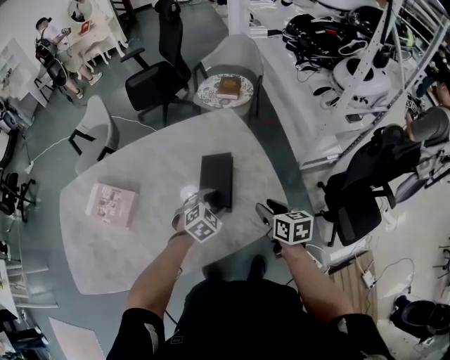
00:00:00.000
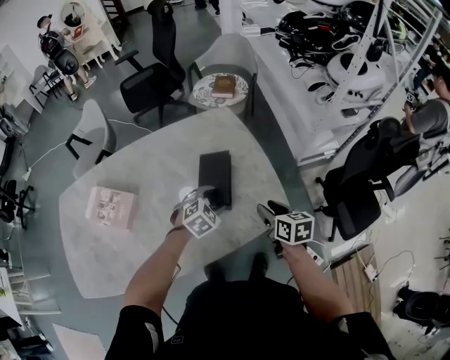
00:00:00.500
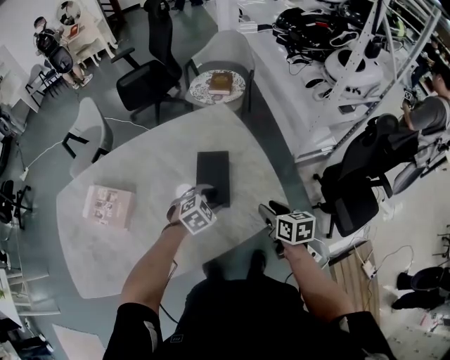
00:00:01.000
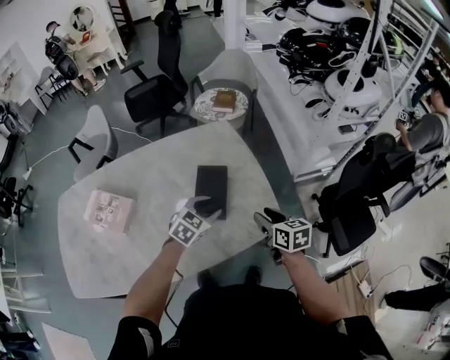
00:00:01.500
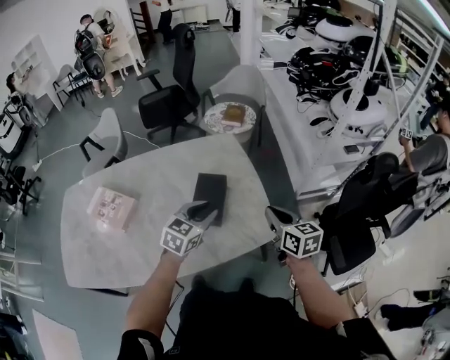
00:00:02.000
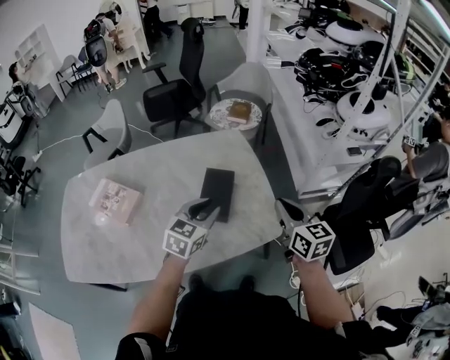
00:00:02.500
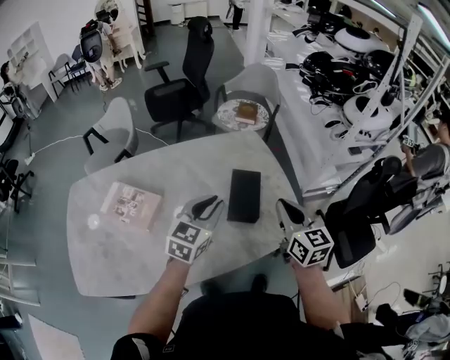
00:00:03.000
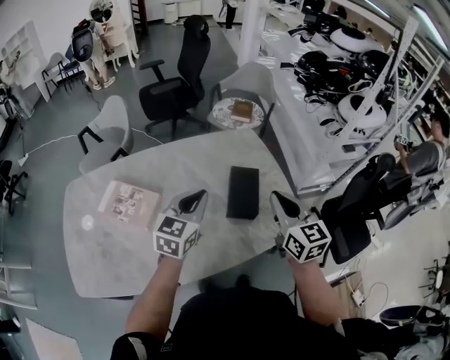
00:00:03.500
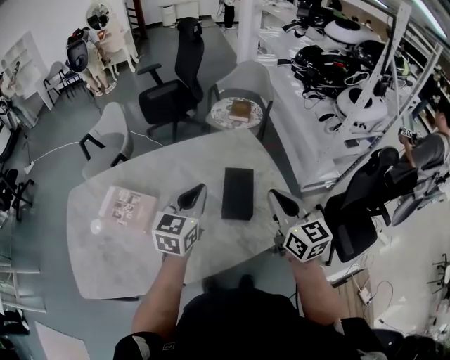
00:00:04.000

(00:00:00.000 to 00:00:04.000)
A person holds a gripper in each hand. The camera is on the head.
00:00:00.000 - 00:00:02.000: The left gripper heads upward, covering about 15 cm, changes its angle by about 40 degrees, and closes up. The right gripper travels upward and to the right by approximately 10 cm, and closes its fingers.
00:00:02.000 - 00:00:04.000: Both grippers travel together to the left and upward, approximately 20 cm. The left gripper closes its fingers.

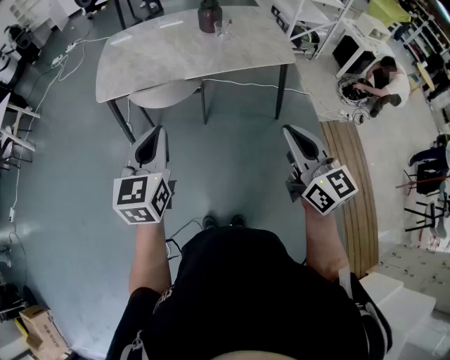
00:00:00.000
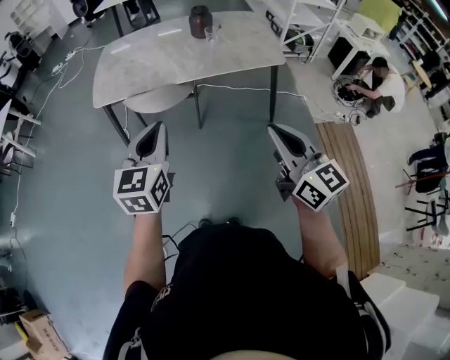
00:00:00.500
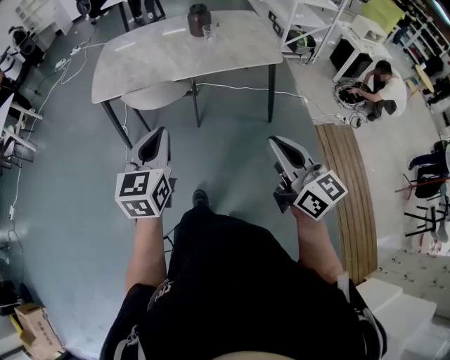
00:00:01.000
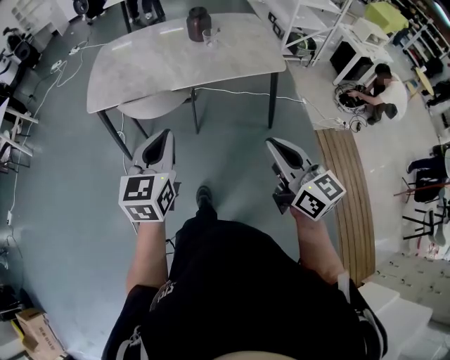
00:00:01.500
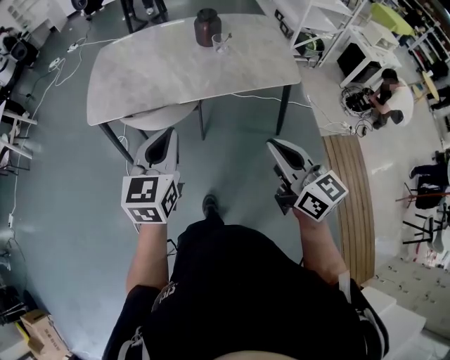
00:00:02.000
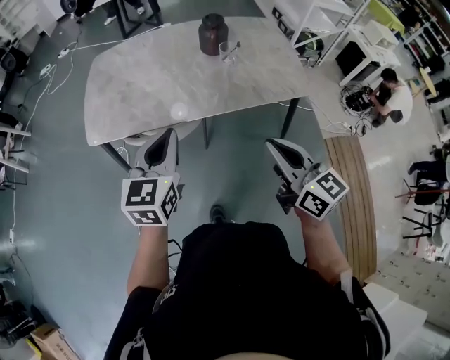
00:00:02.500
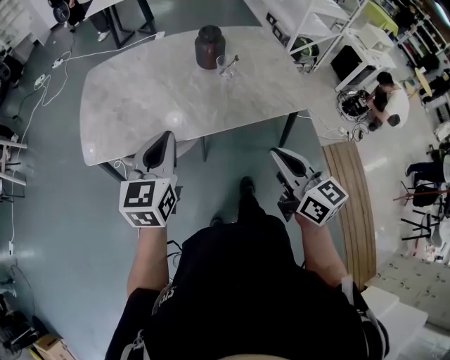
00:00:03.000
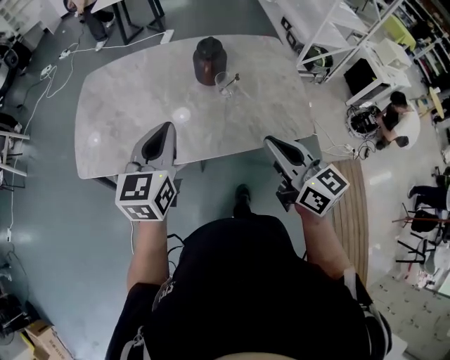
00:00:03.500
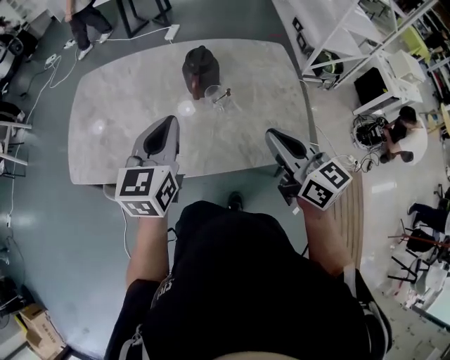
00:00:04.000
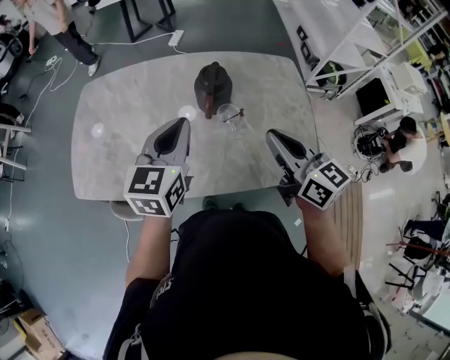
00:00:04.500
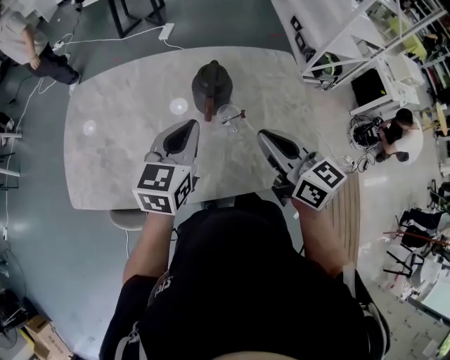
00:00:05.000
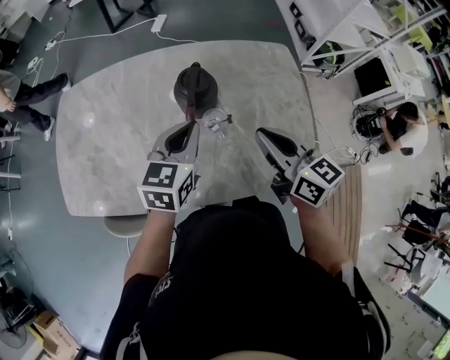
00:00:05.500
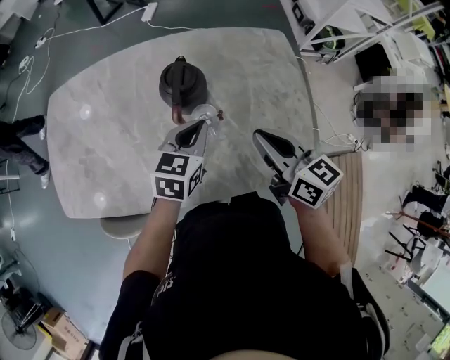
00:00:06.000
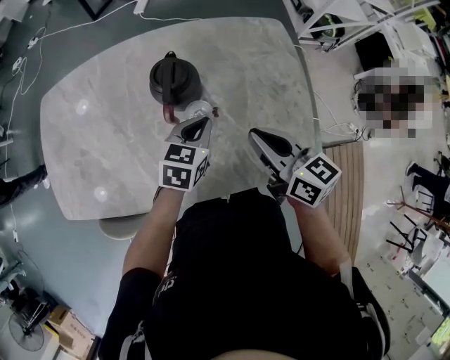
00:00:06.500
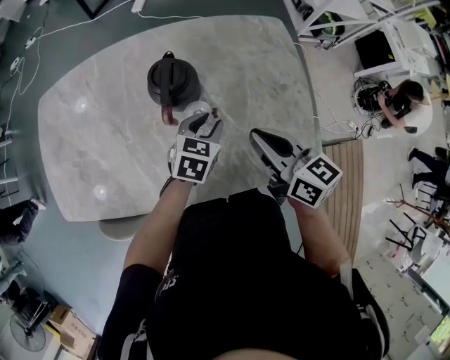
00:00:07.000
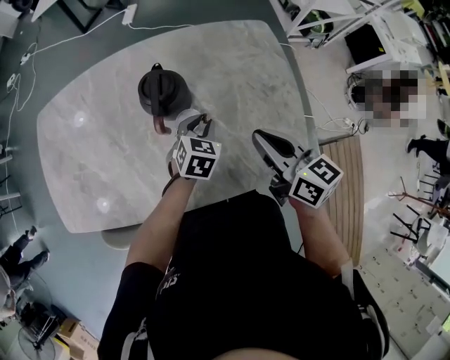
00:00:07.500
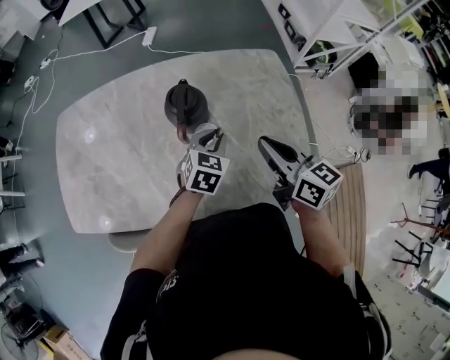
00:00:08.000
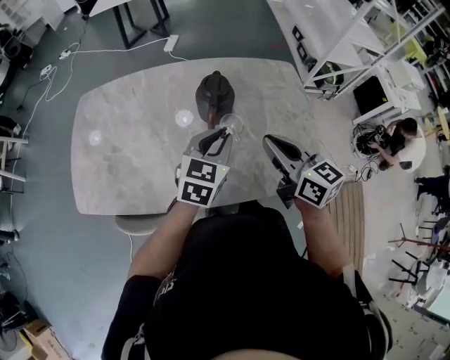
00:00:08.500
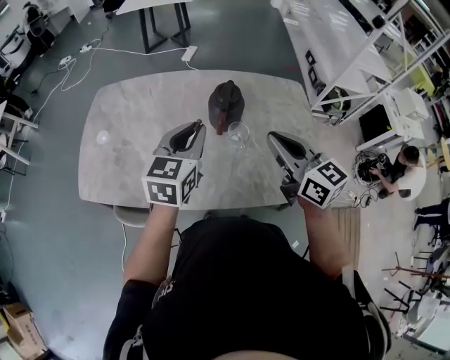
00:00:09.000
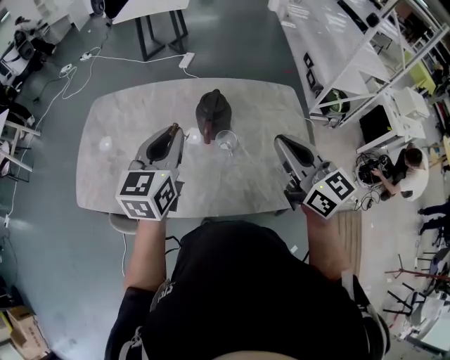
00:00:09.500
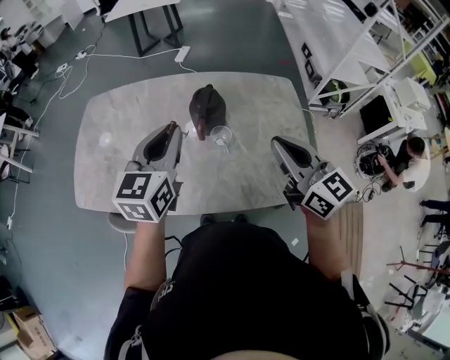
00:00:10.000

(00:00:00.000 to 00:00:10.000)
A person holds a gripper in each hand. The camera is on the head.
00:00:00.000 - 00:00:02.000: The left gripper is displaced forward and to the right by roughly 15 cm. Meanwhile the right gripper shifts roughly 15 cm forward.
00:00:02.000 - 00:00:04.000: The grippers both shift forward by roughly 40 cm.
00:00:04.000 - 00:00:06.000: The right gripper is displaced forward and downward by about 15 cm. The left gripper is displaced downward, forward and to the right by about 25 cm, and rotates some 30 degrees.
00:00:08.000 - 00:00:10.000: The left gripper heads upward and to the left, covering some 30 cm, and rotates about 30 degrees, while the right gripper heads upward, covering about 10 cm, and rotates some 20 degrees.

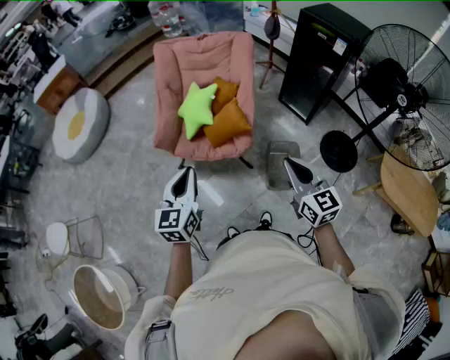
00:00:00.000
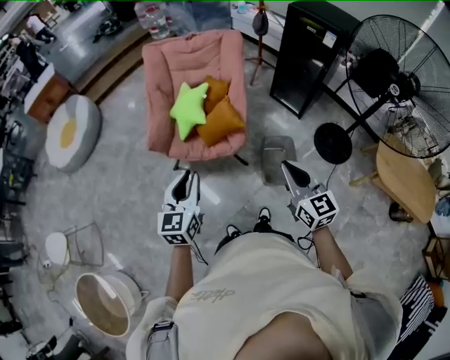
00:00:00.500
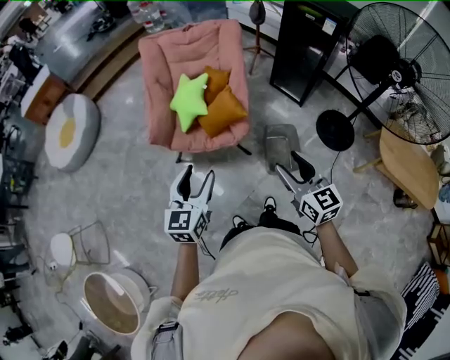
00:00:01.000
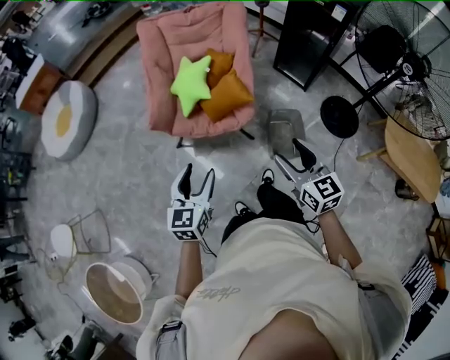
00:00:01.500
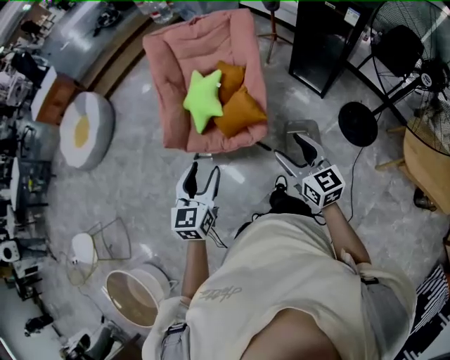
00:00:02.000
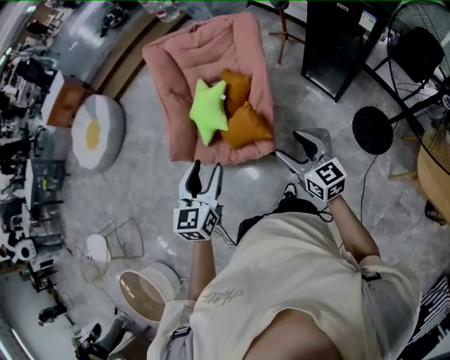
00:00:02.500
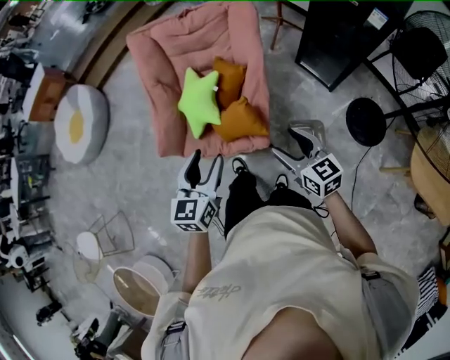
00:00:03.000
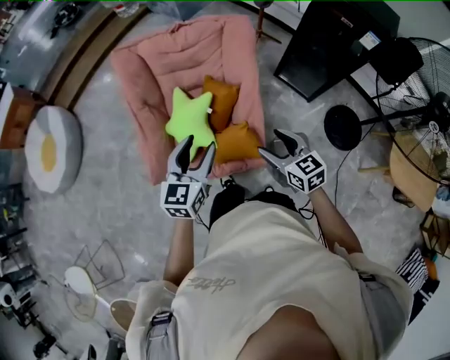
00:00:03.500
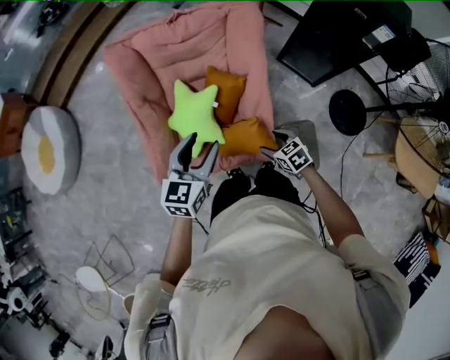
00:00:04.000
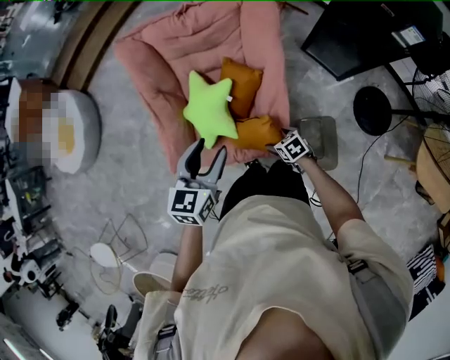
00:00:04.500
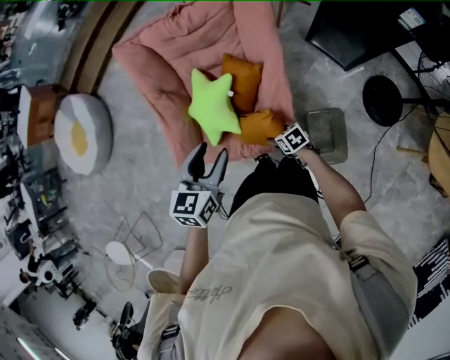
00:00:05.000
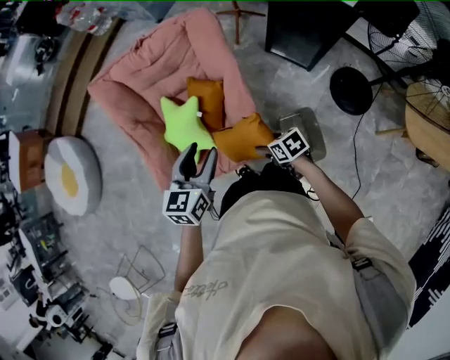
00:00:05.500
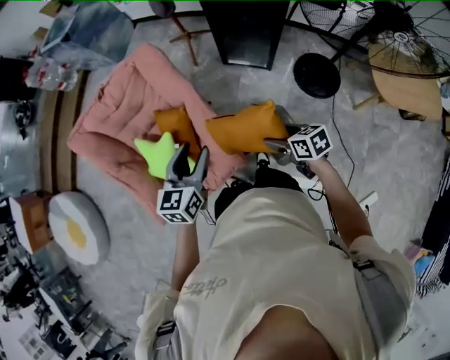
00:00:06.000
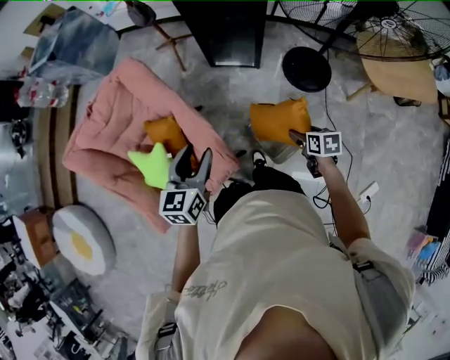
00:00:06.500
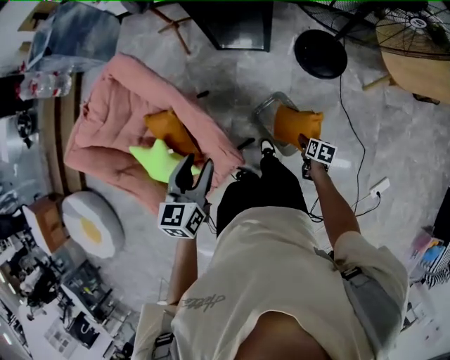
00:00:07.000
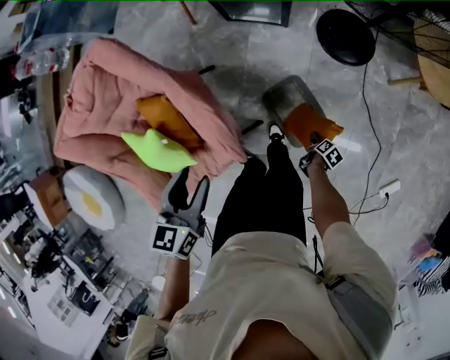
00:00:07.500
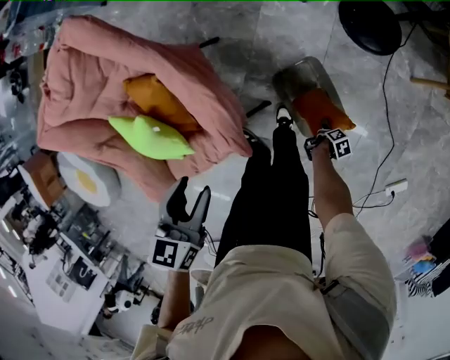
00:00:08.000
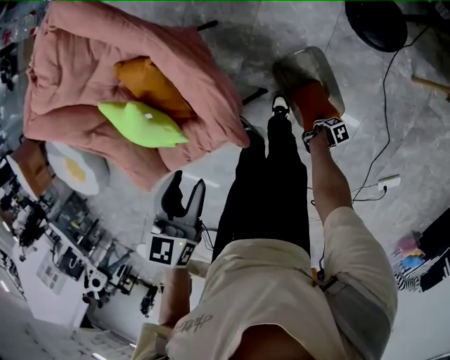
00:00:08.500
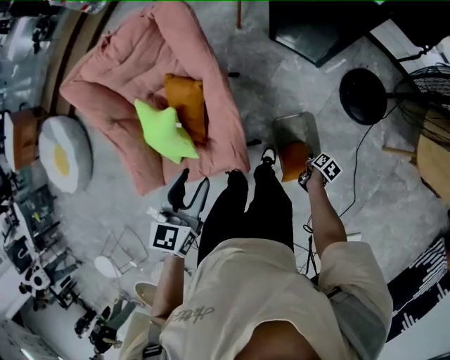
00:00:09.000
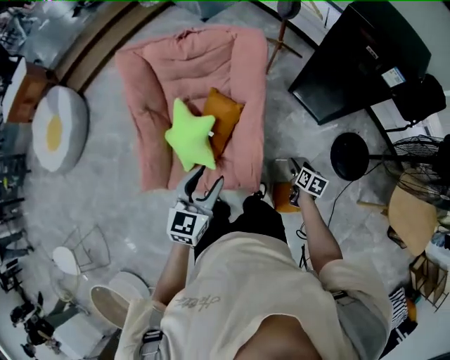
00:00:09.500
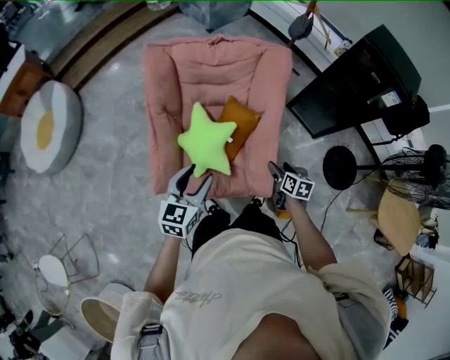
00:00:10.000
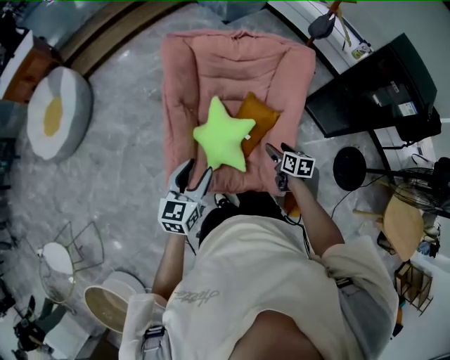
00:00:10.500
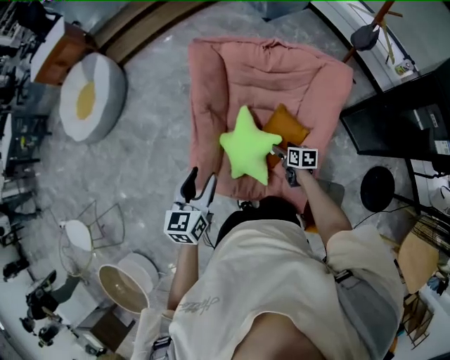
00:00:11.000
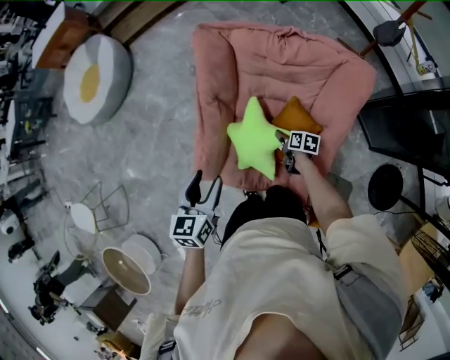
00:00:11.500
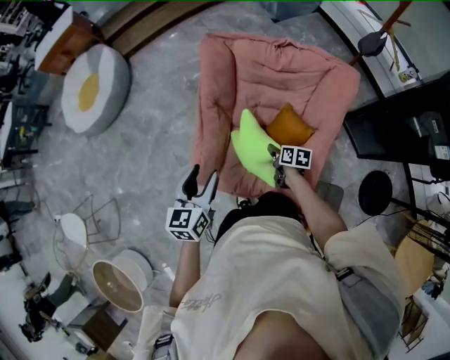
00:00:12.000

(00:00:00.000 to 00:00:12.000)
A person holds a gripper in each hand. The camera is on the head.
00:00:00.000 - 00:00:02.000: The right gripper is displaced forward and downward by about 10 cm, and opens up; the left gripper travels forward by some 5 cm, and opens.
00:00:02.000 - 00:00:04.000: The left gripper shifts some 35 cm forward, while the right gripper is displaced forward and downward by approximately 35 cm, and angles its fingers downward, by roughly 40 degrees.
00:00:04.000 - 00:00:06.000: The right gripper ends up about 20 cm from where it was, and changes its angle by roughly 40 degrees, while the left gripper moves roughly 20 cm.
00:00:06.000 - 00:00:08.000: The left gripper heads downward, covering roughly 10 cm, and swivels some 20 degrees. The right gripper goes roughly 50 cm downward, and rotates around the line of its fingers by roughly 80 degrees, clockwise from behind.
00:00:08.000 - 00:00:10.000: The right gripper ends up approximately 50 cm from where it was, and rolls counterclockwise, seen from behind, by roughly 80 degrees, while the left gripper changes place by some 25 cm, and turns by approximately 30 degrees.
00:00:10.000 - 00:00:12.000: The left gripper moves approximately 15 cm, and rotates roughly 30 degrees. The right gripper shifts by about 25 cm, turns by about 30 degrees, and closes.
